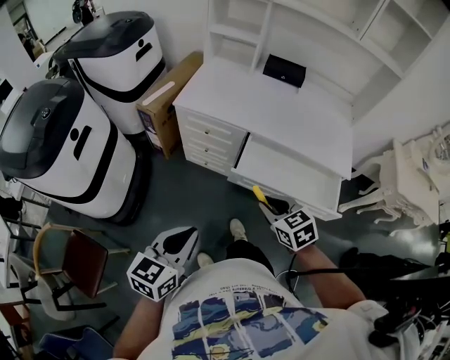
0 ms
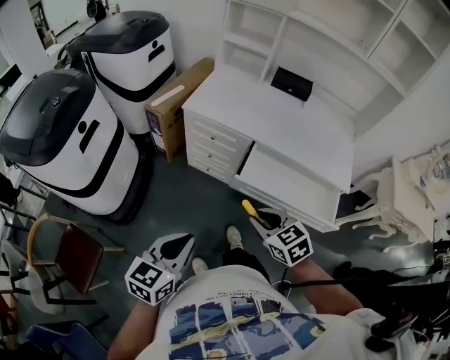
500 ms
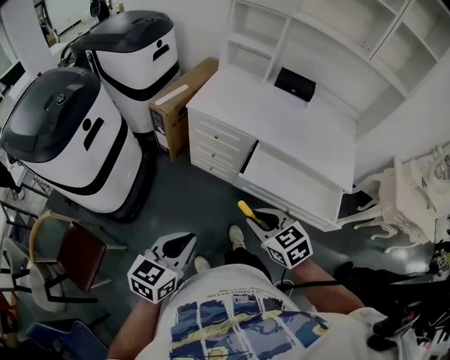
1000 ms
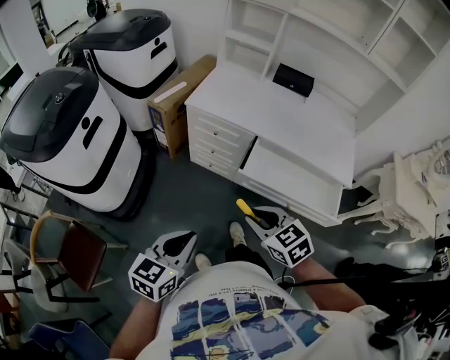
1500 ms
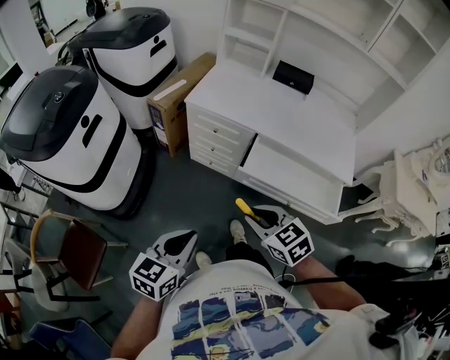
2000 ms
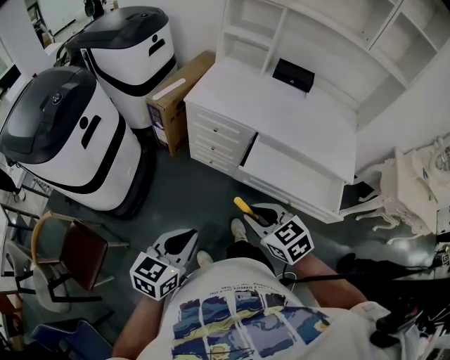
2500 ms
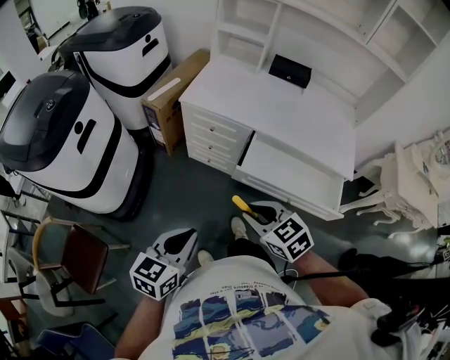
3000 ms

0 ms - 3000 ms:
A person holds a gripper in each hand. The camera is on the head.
0 ms - 1500 ms: The right gripper moves to the left, some 10 cm.
1500 ms - 3000 ms: The two grippers keep their place.

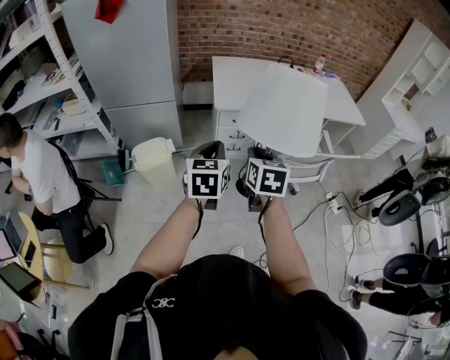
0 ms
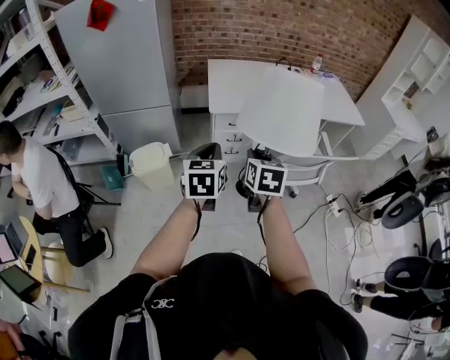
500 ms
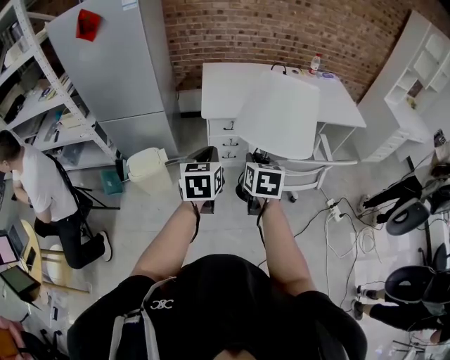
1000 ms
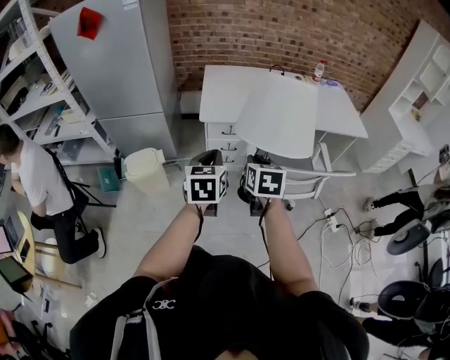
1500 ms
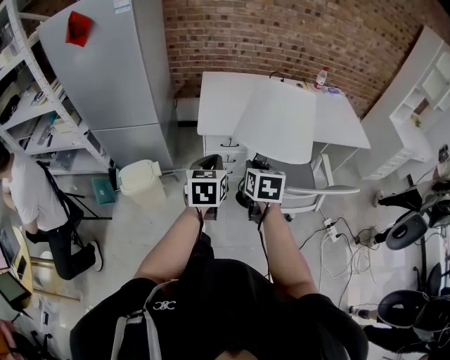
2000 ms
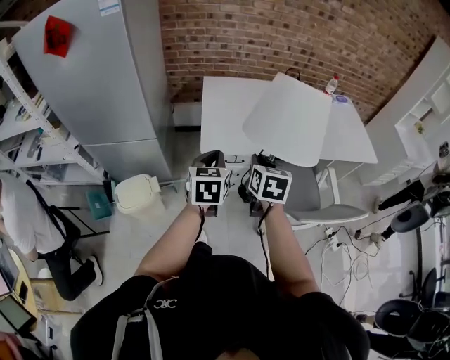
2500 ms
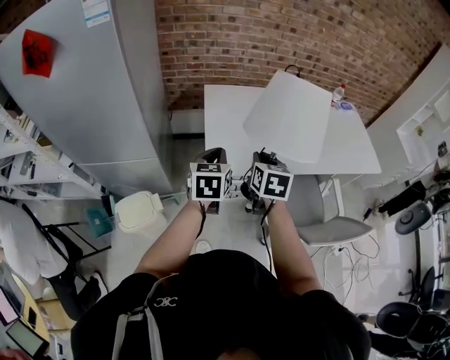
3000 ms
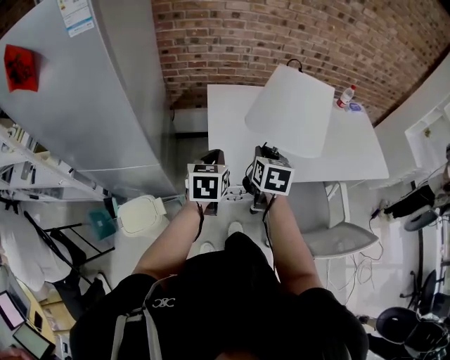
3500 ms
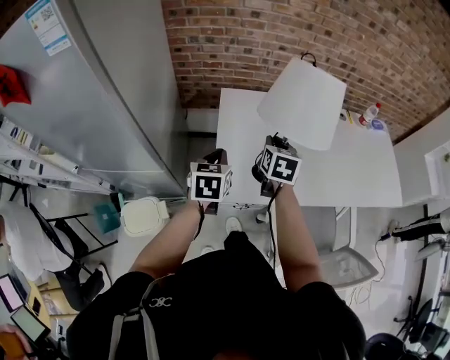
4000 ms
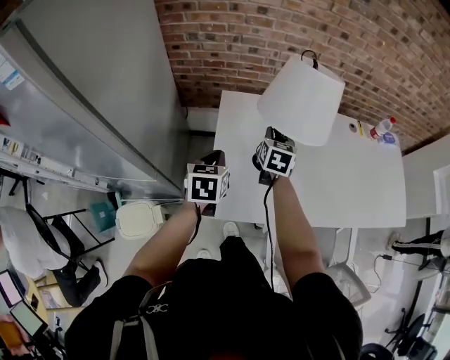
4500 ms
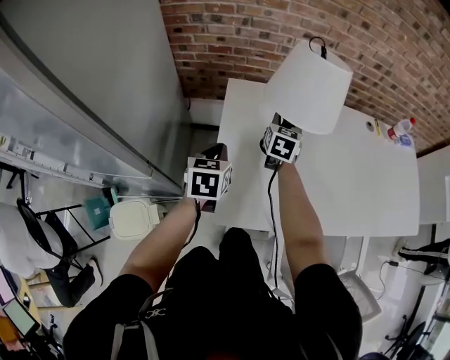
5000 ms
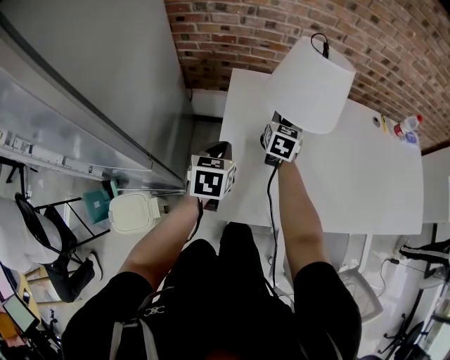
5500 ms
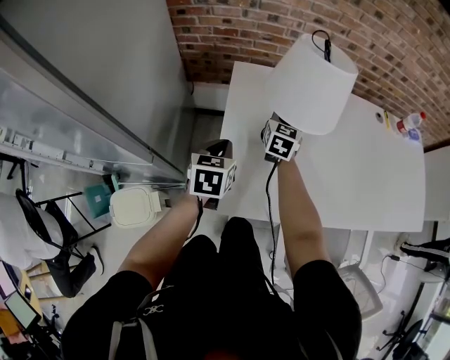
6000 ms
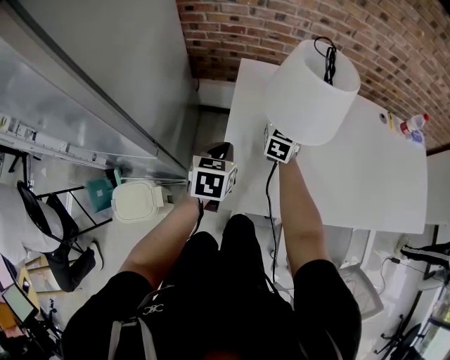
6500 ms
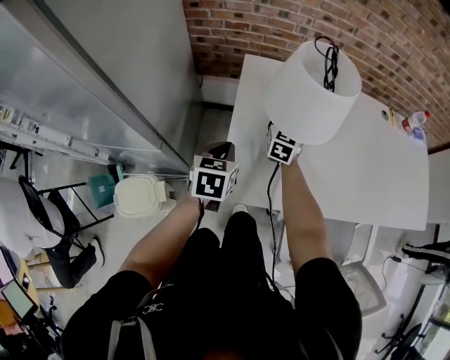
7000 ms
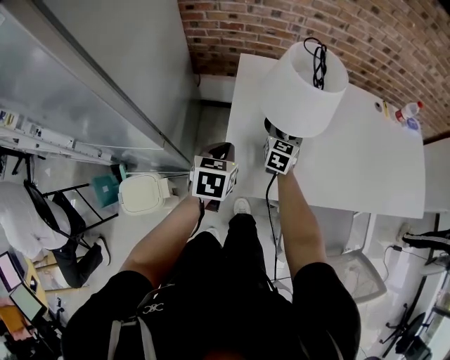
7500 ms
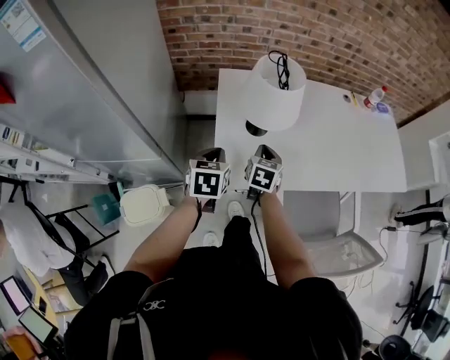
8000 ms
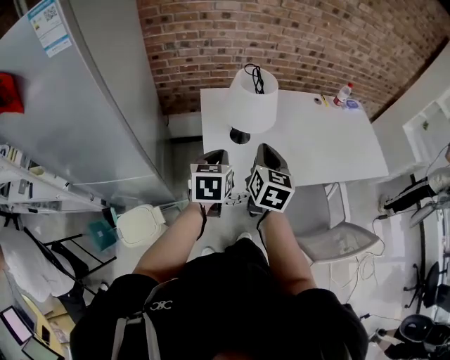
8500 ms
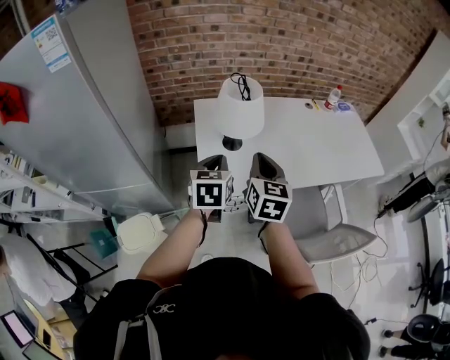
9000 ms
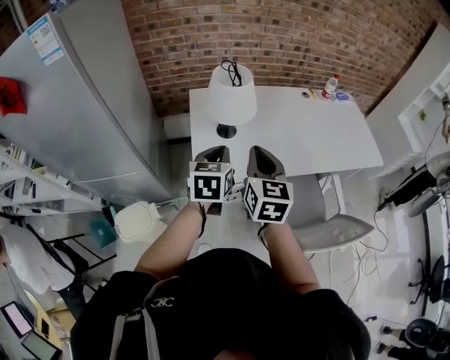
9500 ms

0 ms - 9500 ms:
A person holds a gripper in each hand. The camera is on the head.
0 ms - 2000 ms: The grippers both shift forward and to the right by about 20 cm.
2000 ms - 4000 ms: Both grippers are carried forward, about 50 cm.
4000 ms - 5500 ms: The left gripper goes about 15 cm downward and forward. The right gripper is displaced forward and downward by about 25 cm.
5500 ms - 7500 ms: The two grippers go some 10 cm backward. The right gripper opens up.
7500 ms - 9500 ms: The left gripper goes approximately 25 cm upward, to the right and backward; the right gripper shifts approximately 40 cm upward and backward, and closes its fingers.

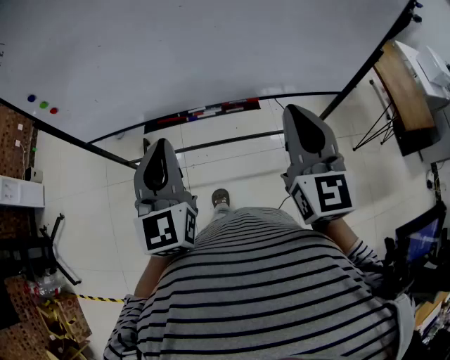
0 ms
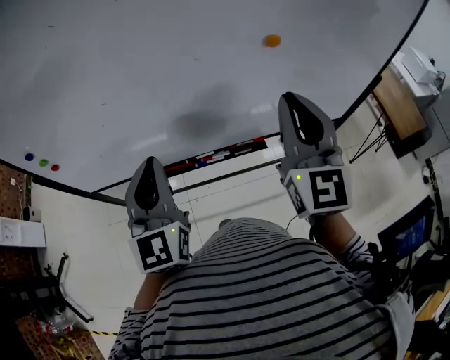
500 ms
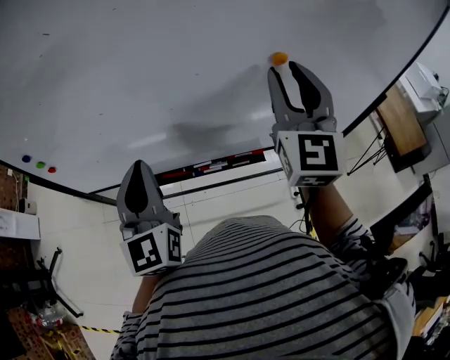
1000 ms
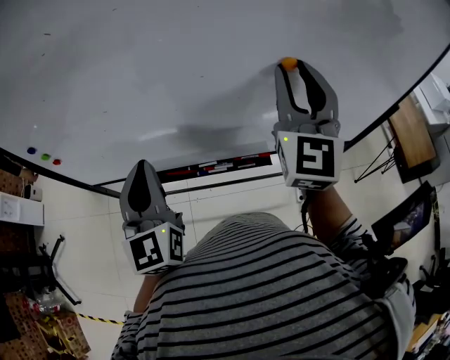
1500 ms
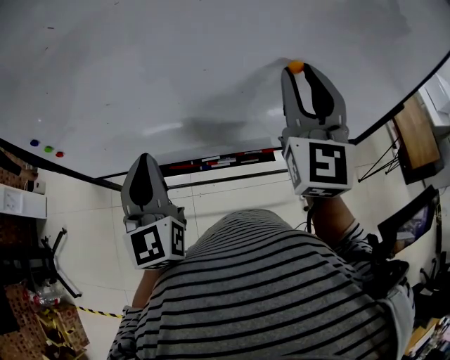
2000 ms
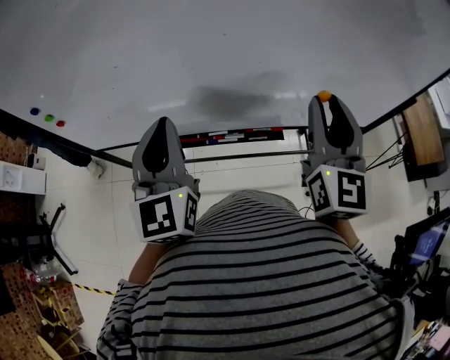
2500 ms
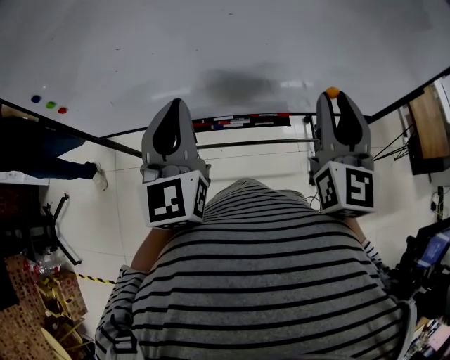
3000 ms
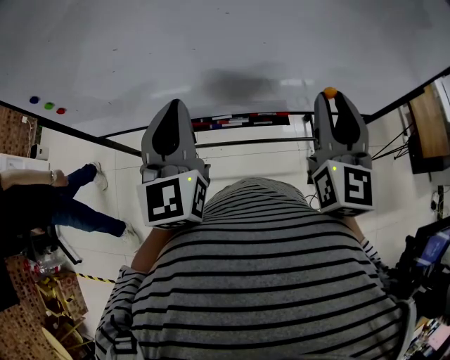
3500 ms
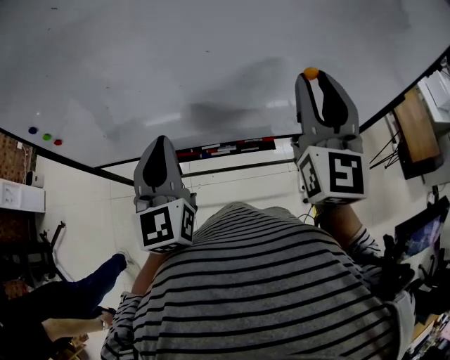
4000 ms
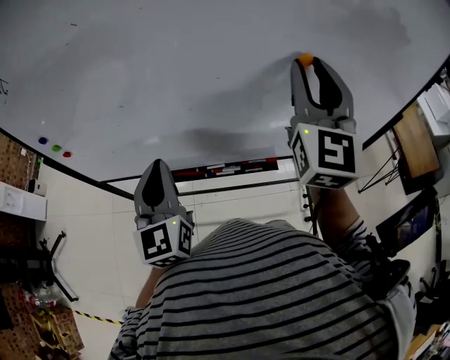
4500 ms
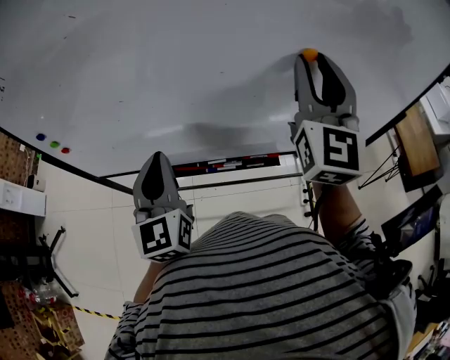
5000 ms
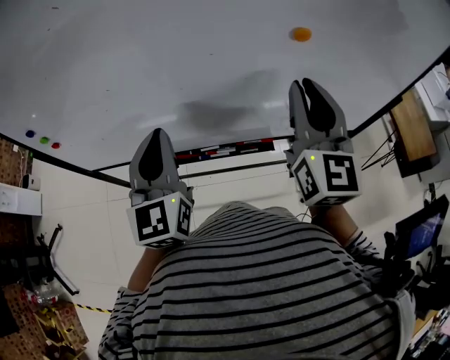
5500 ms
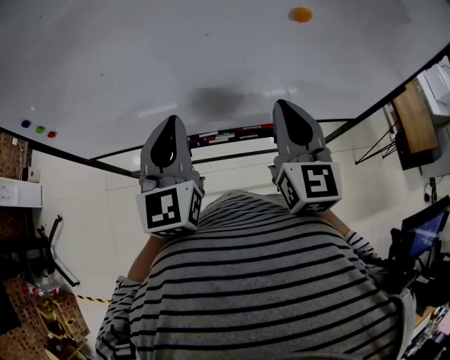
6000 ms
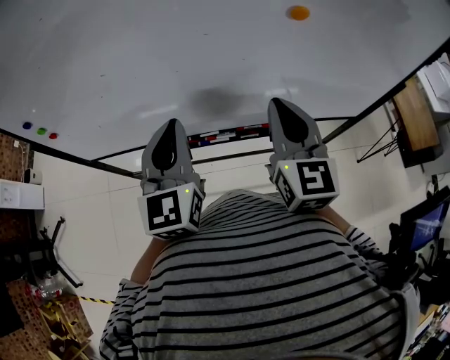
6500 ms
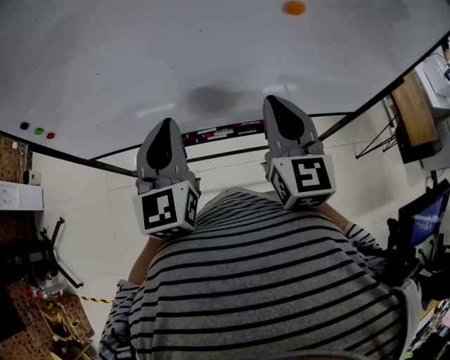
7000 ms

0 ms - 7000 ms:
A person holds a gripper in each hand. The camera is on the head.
0 ms - 2000 ms: The right gripper is displaced forward and upward by some 20 cm, and opens; the left gripper shifts some 15 cm forward and to the left.
2000 ms - 3500 ms: The right gripper travels downward and backward by about 10 cm.
3500 ms - 5000 ms: The right gripper shifts roughly 15 cm upward and forward.
5000 ms - 7000 ms: The right gripper goes approximately 15 cm downward and backward, swivels about 20 degrees, and closes up. Meanwhile the left gripper heads to the right, covering some 5 cm.

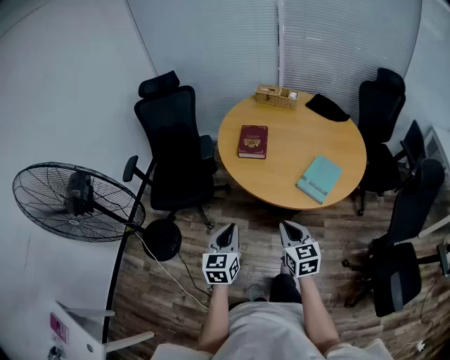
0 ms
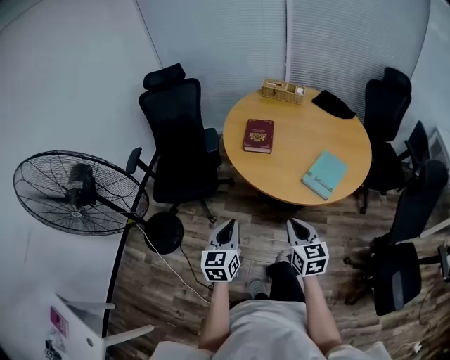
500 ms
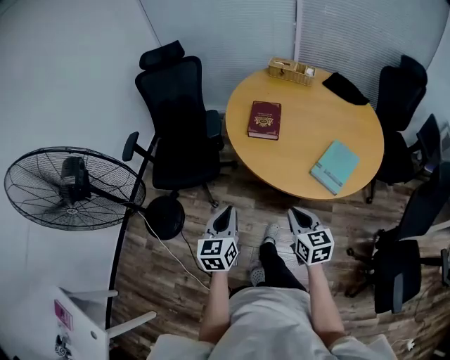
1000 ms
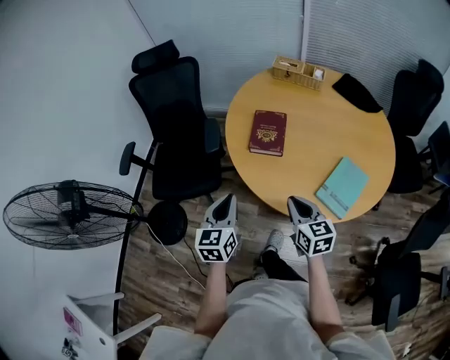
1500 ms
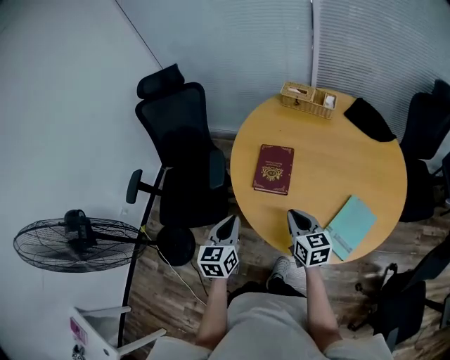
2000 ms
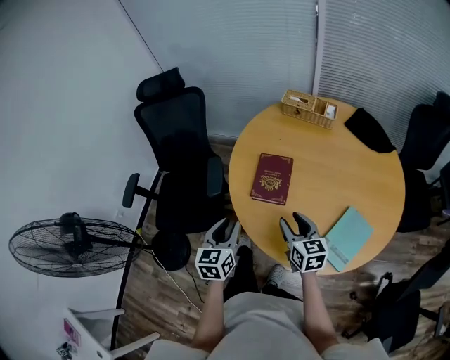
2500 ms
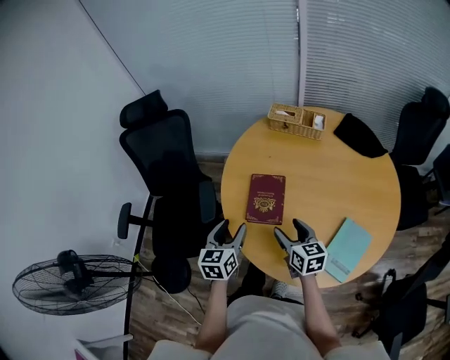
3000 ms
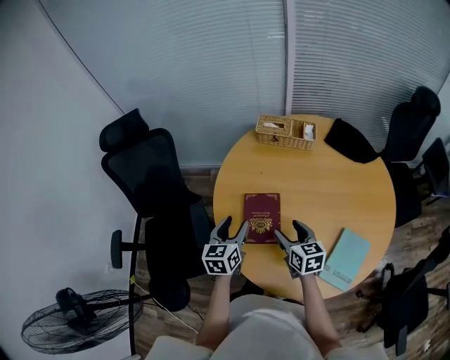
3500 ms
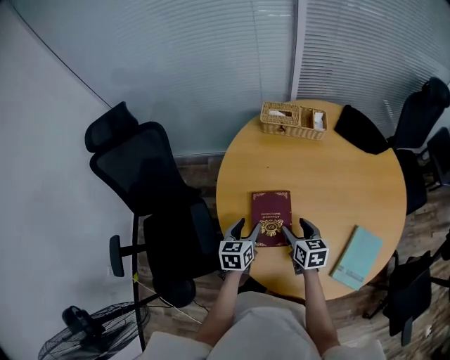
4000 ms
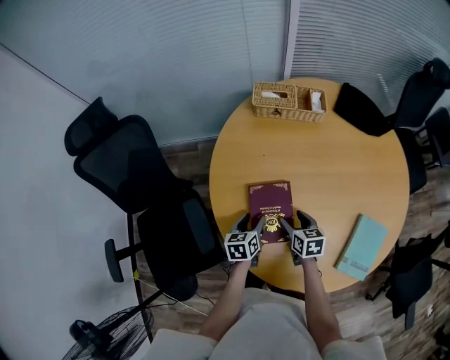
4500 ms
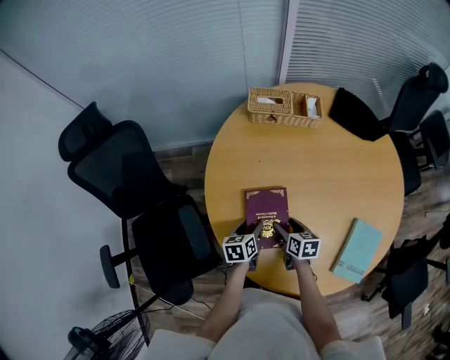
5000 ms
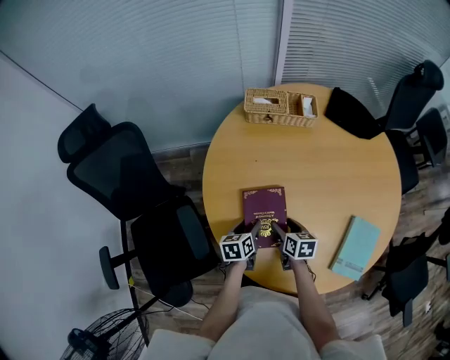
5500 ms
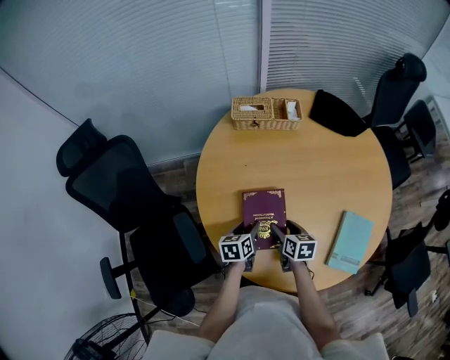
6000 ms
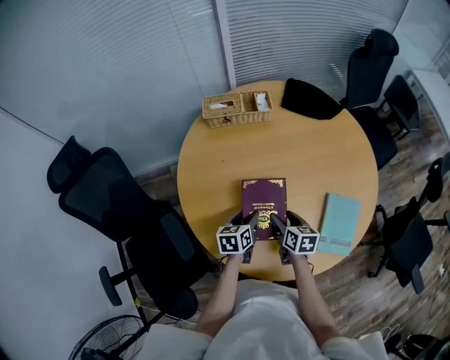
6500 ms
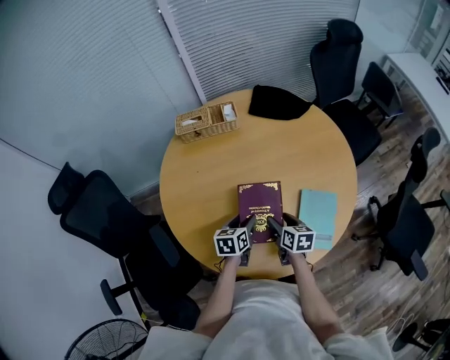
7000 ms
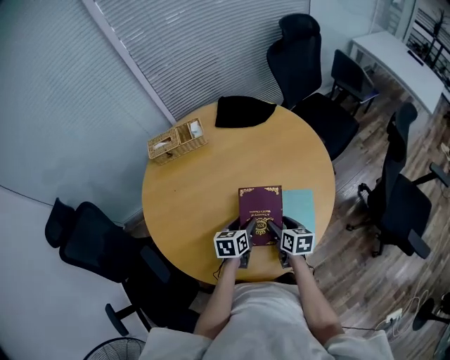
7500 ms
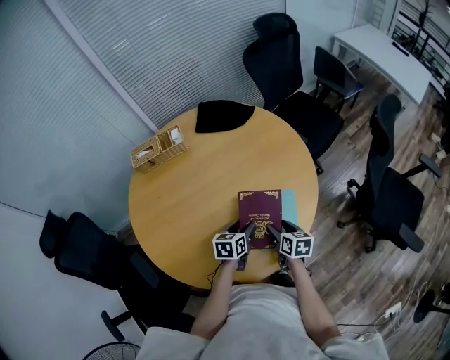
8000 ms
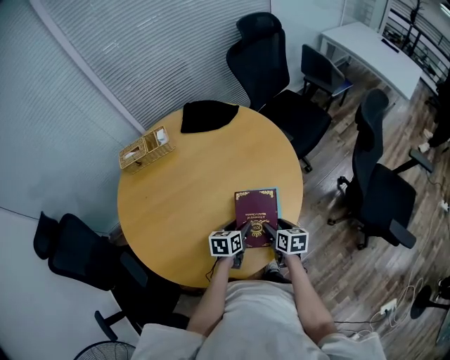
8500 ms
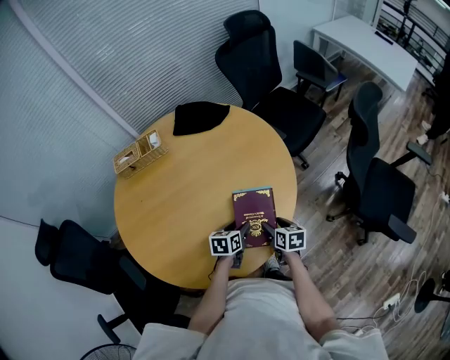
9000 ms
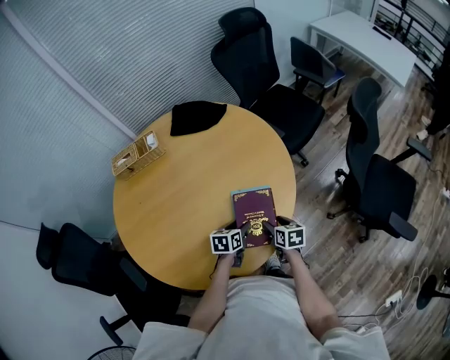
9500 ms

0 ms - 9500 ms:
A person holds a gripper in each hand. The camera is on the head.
0 ms - 2000 ms: Both grippers move forward, some 30 cm.
2000 ms - 4000 ms: The grippers both shift forward and downward by some 25 cm. The left gripper turns by some 20 degrees, and opens up. Meanwhile the right gripper swivels roughly 20 degrees, and opens up.
4000 ms - 5500 ms: The grippers both shift downward by some 10 cm.
5500 ms - 7500 ms: The two grippers go roughly 30 cm to the right. The right gripper changes its angle by approximately 20 degrees; the left gripper changes its angle by some 30 degrees.
7500 ms - 9500 ms: The left gripper goes approximately 15 cm to the right and downward, while the right gripper travels to the right by roughly 15 cm.
